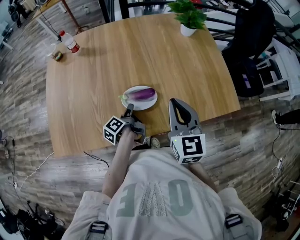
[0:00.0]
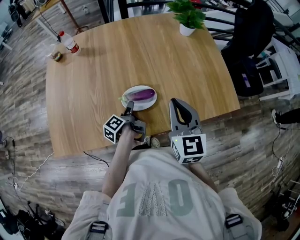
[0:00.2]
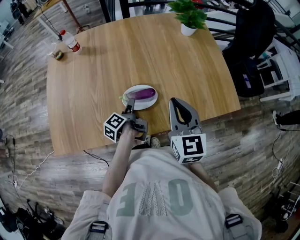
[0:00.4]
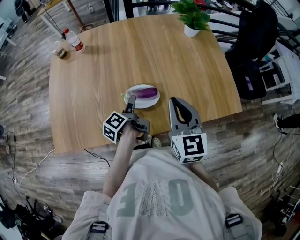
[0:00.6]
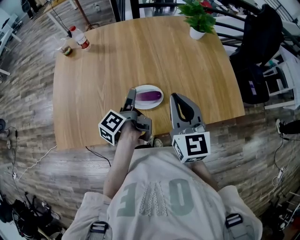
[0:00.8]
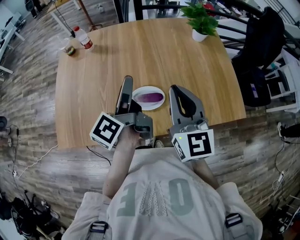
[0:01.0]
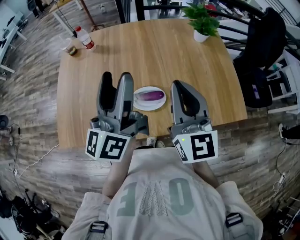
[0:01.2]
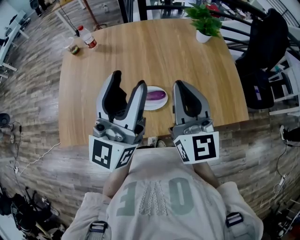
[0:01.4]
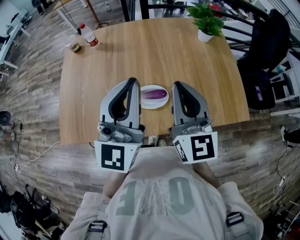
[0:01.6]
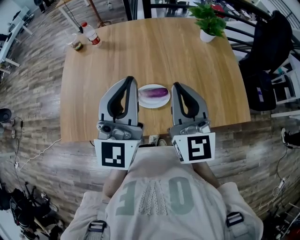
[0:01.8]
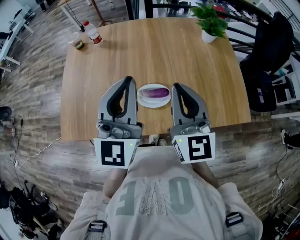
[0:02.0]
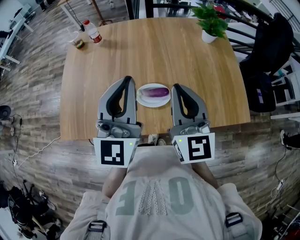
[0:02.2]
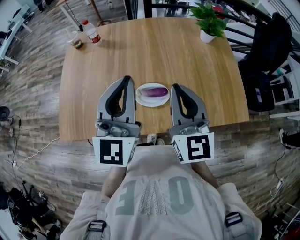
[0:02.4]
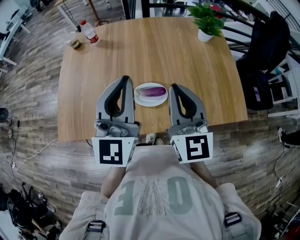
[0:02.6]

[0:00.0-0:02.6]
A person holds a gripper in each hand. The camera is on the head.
0:00.0 to 0:01.2: The right gripper is displaced upward by some 10 cm, and rotates roughly 20 degrees.

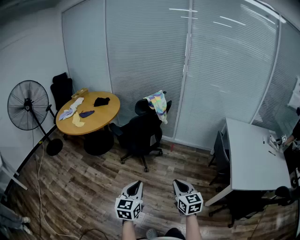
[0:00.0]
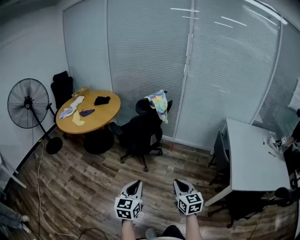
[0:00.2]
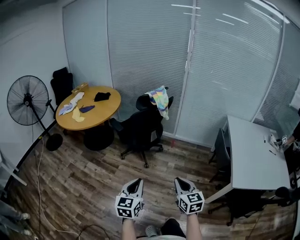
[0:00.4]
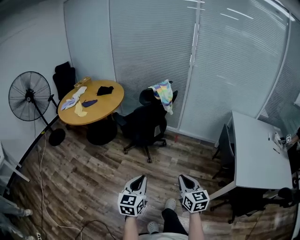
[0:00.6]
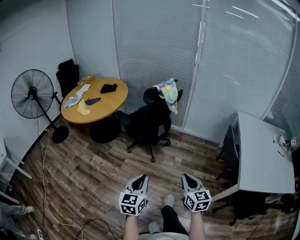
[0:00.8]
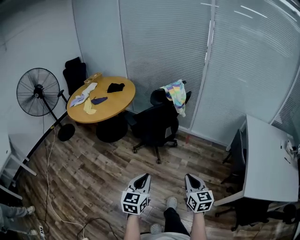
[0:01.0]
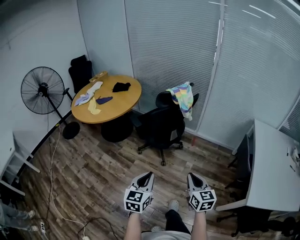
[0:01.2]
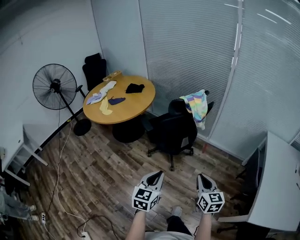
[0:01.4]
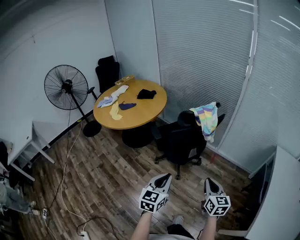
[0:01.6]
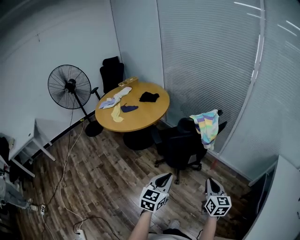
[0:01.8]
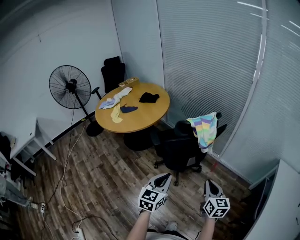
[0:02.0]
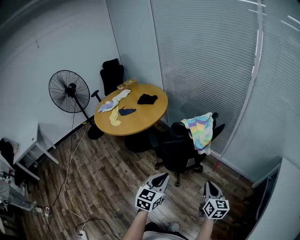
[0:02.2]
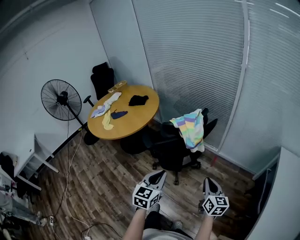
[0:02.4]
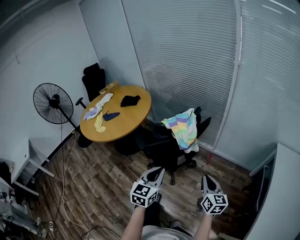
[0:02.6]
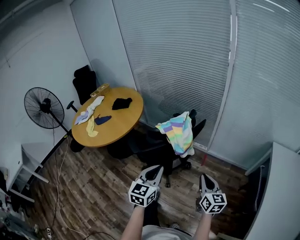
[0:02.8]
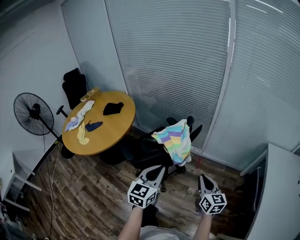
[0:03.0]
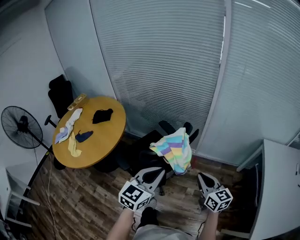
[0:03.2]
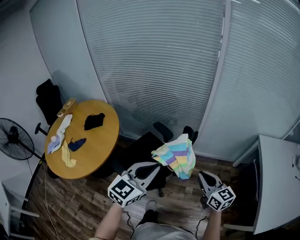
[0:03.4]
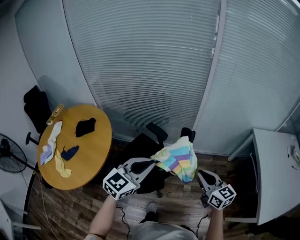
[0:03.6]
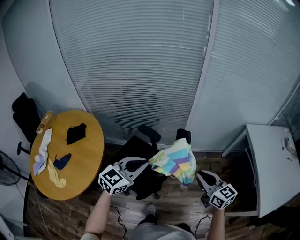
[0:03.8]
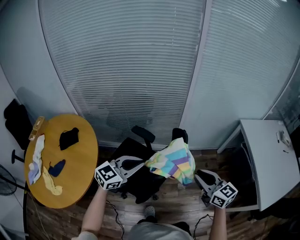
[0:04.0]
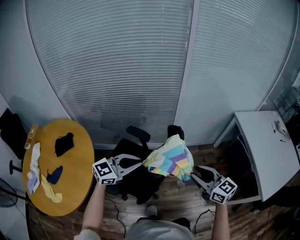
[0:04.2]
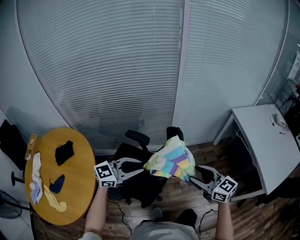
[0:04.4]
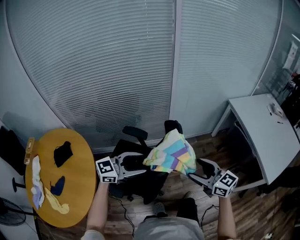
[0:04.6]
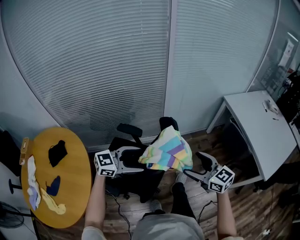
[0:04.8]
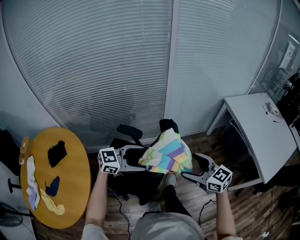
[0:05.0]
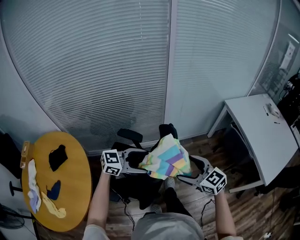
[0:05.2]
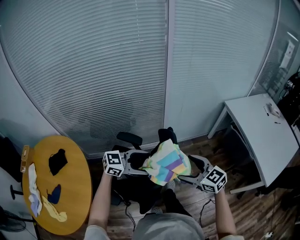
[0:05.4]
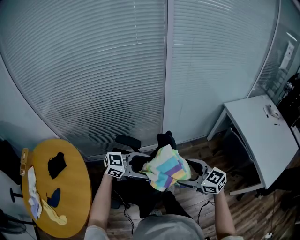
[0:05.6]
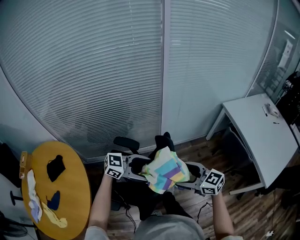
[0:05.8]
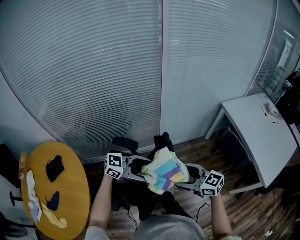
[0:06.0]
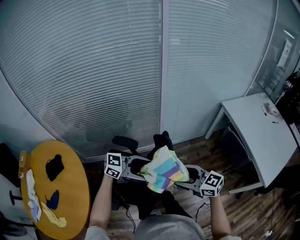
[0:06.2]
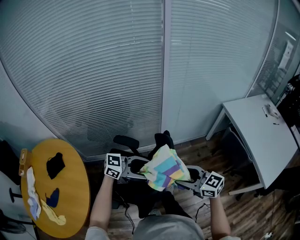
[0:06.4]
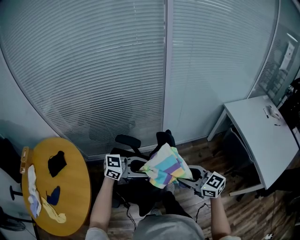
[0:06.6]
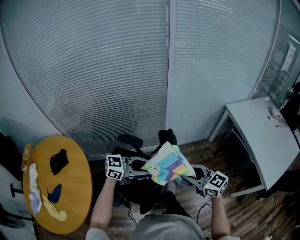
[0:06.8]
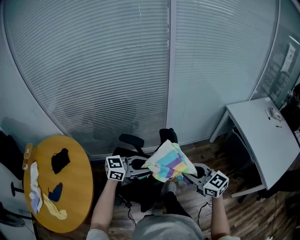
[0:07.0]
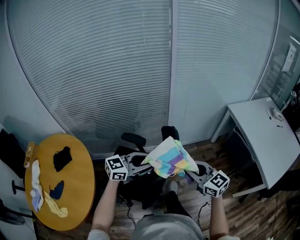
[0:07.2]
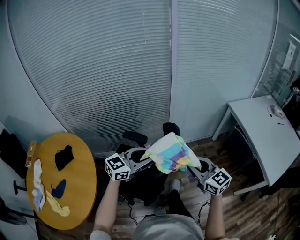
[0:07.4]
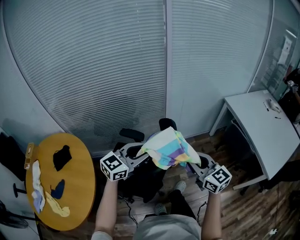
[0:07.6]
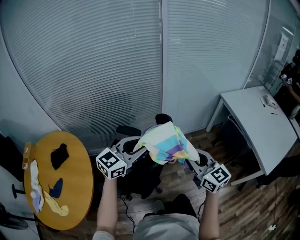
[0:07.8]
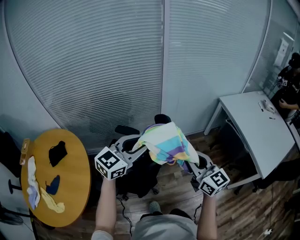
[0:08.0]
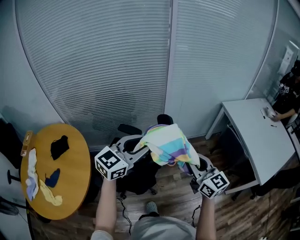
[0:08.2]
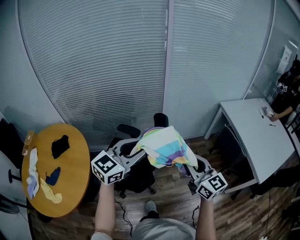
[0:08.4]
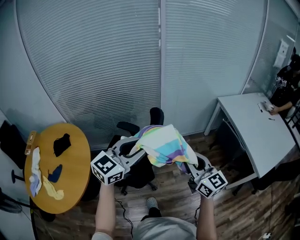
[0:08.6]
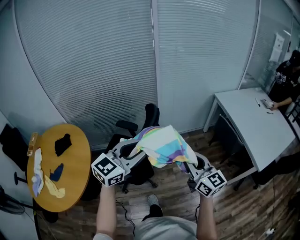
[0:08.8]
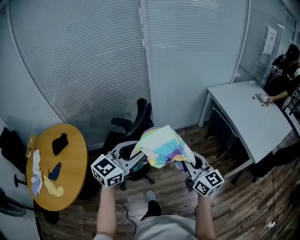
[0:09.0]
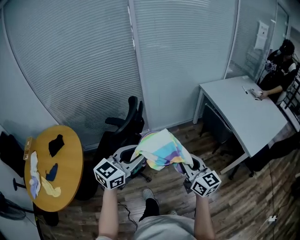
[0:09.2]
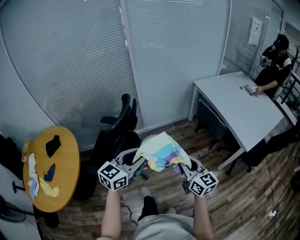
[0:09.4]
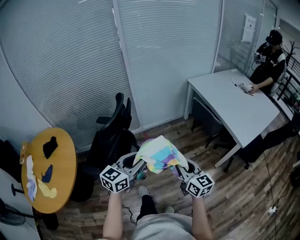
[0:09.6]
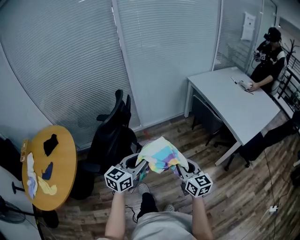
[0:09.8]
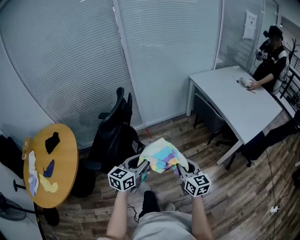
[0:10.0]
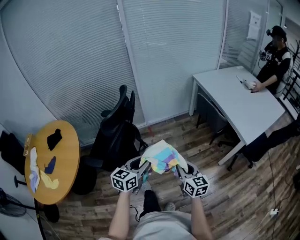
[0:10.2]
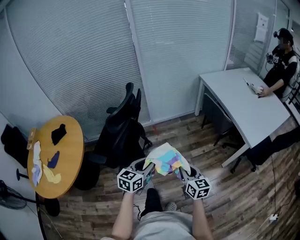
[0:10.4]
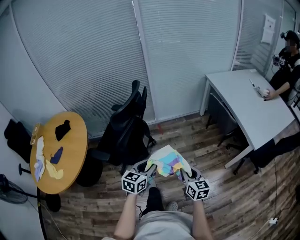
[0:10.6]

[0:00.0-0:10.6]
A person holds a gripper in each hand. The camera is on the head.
0:00.0 to 0:01.6: Both grippers move forward, some 25 cm.
0:01.6 to 0:03.0: The right gripper shifts about 25 cm forward and to the right; the left gripper travels forward by some 25 cm.
0:03.0 to 0:04.6: The right gripper moves roughly 15 cm, and opens; the left gripper moves roughly 5 cm upward and comes back, turns by some 80 degrees, and opens.
0:04.6 to 0:06.0: The right gripper ends up about 5 cm from where it was; the left gripper shifts by roughly 10 cm, turns by about 30 degrees, and opens.
0:06.0 to 0:07.6: The two grippers go approximately 5 cm upward. The right gripper turns by approximately 20 degrees, and closes up. The left gripper rotates roughly 40 degrees, and closes.
0:07.6 to 0:09.0: The right gripper moves backward and to the right, roughly 20 cm. Meanwhile the left gripper is displaced backward, to the right and upward by some 20 cm.
0:09.0 to 0:10.6: The left gripper shifts approximately 25 cm downward and backward, and changes its angle by some 30 degrees, while the right gripper heads downward, backward and to the right, covering approximately 25 cm, and swivels roughly 20 degrees.

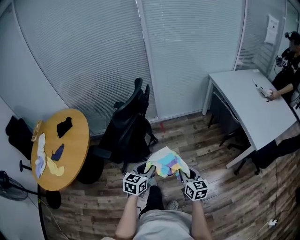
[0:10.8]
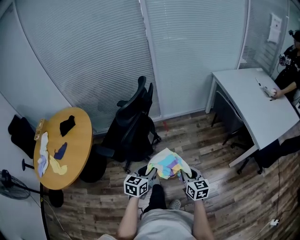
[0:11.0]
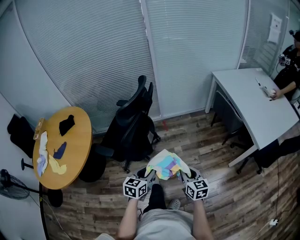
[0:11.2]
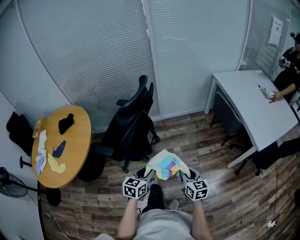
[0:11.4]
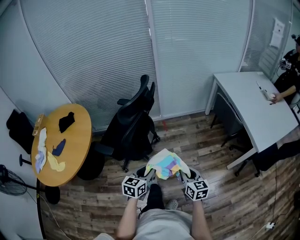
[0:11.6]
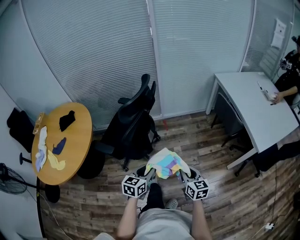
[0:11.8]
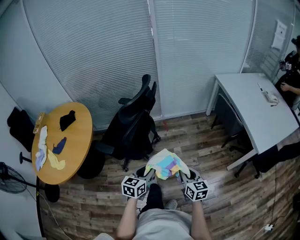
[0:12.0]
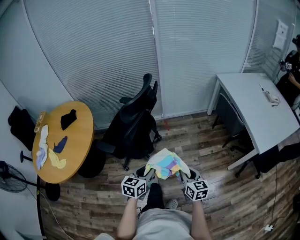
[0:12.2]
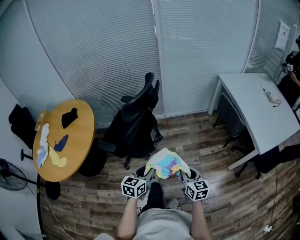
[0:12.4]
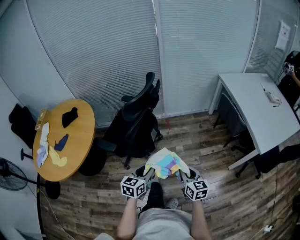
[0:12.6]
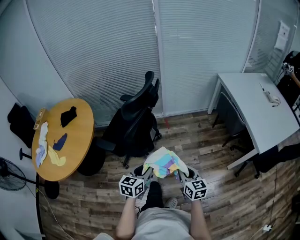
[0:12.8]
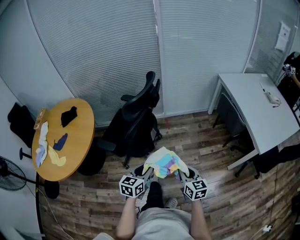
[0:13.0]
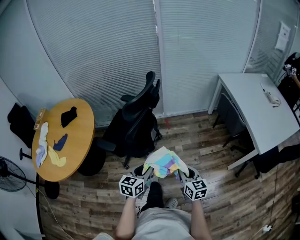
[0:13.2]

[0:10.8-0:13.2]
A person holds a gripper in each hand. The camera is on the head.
0:10.8 to 0:13.2: The grippers move only a little.

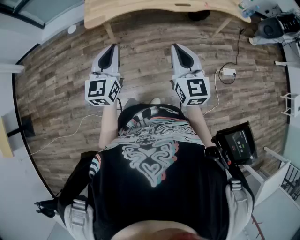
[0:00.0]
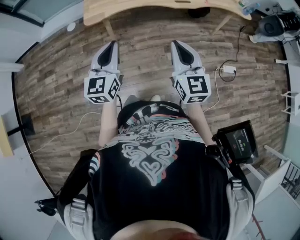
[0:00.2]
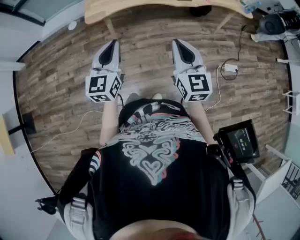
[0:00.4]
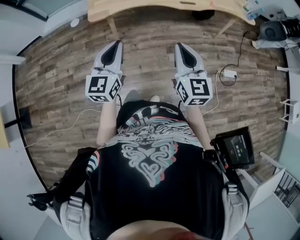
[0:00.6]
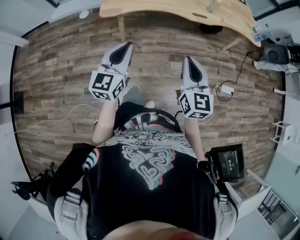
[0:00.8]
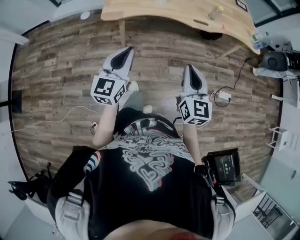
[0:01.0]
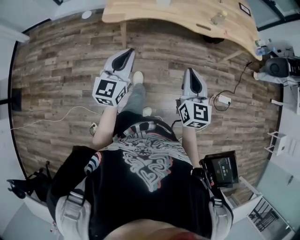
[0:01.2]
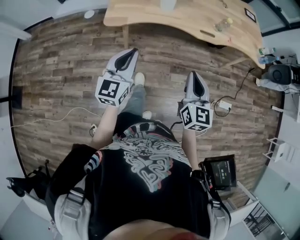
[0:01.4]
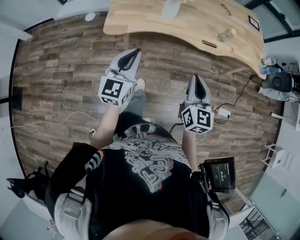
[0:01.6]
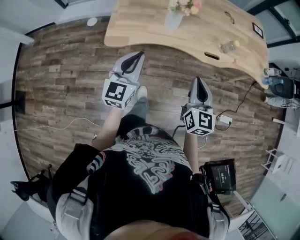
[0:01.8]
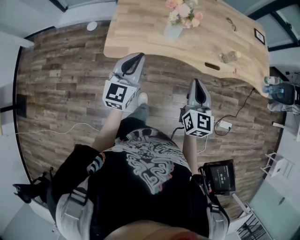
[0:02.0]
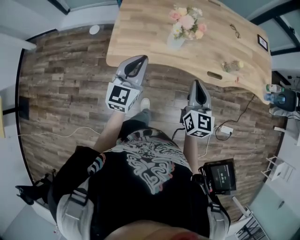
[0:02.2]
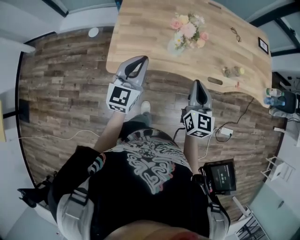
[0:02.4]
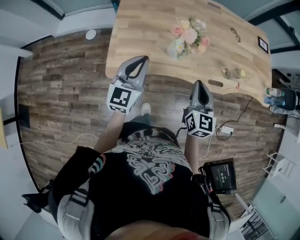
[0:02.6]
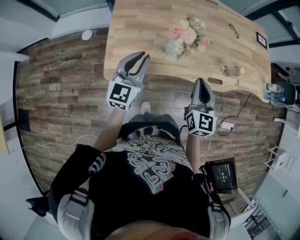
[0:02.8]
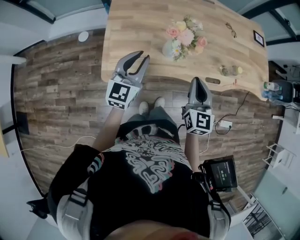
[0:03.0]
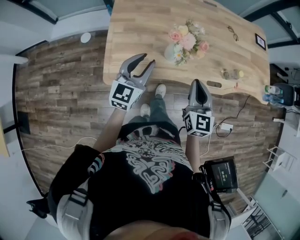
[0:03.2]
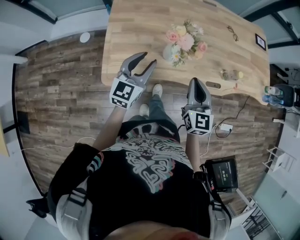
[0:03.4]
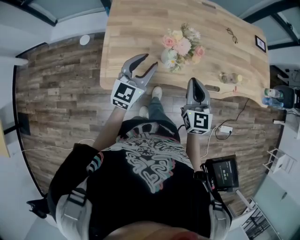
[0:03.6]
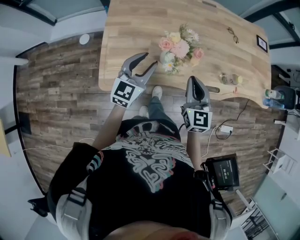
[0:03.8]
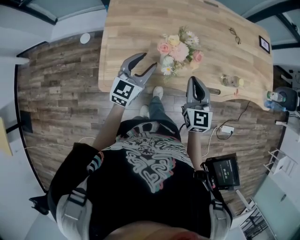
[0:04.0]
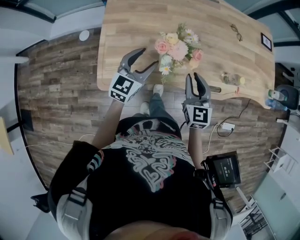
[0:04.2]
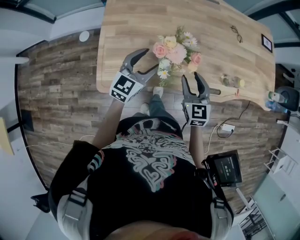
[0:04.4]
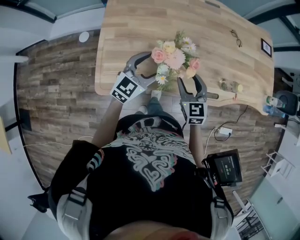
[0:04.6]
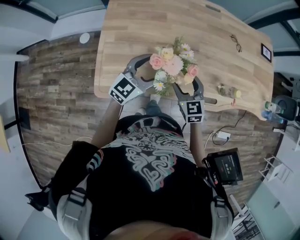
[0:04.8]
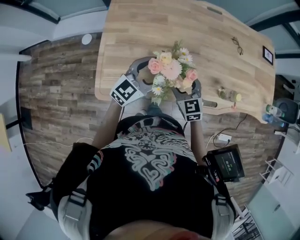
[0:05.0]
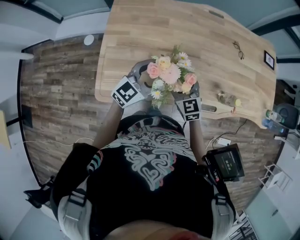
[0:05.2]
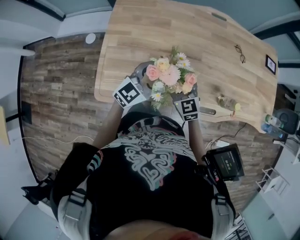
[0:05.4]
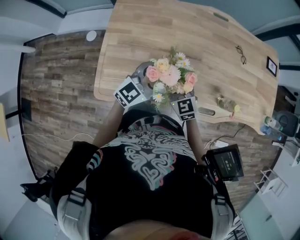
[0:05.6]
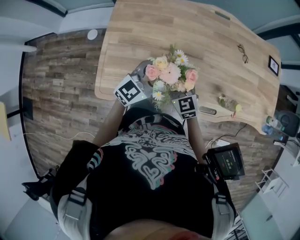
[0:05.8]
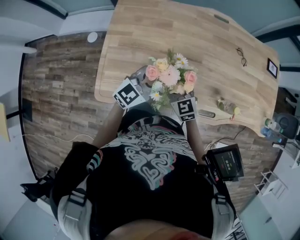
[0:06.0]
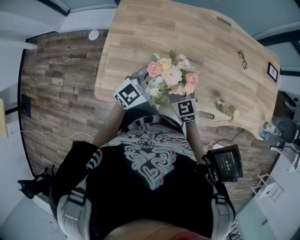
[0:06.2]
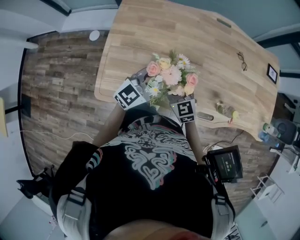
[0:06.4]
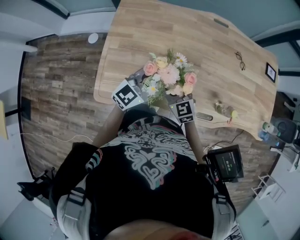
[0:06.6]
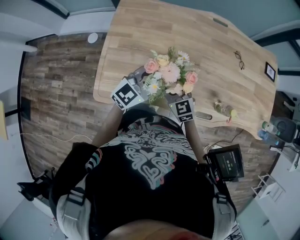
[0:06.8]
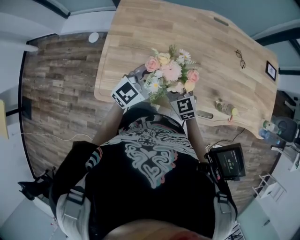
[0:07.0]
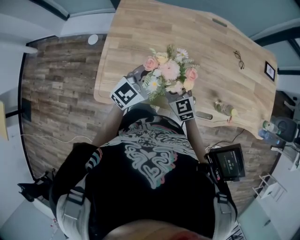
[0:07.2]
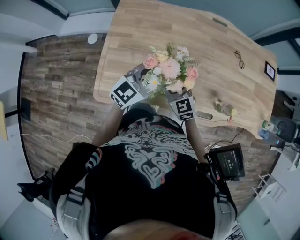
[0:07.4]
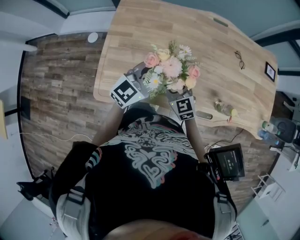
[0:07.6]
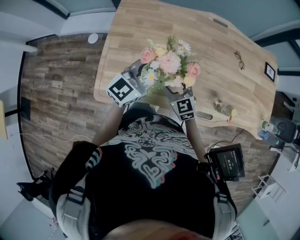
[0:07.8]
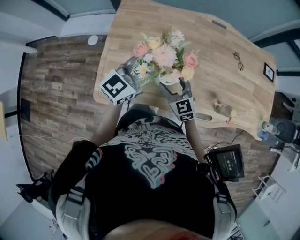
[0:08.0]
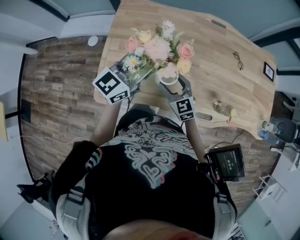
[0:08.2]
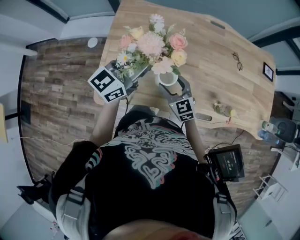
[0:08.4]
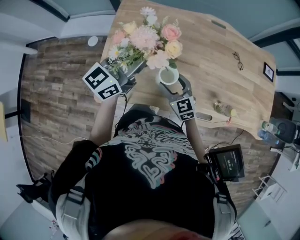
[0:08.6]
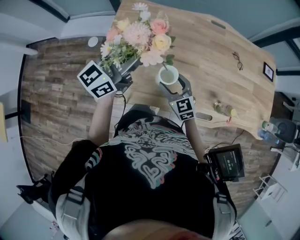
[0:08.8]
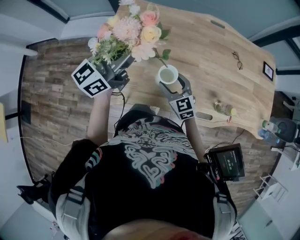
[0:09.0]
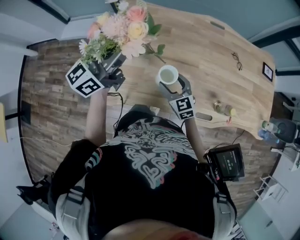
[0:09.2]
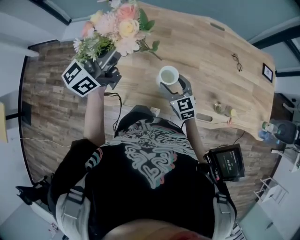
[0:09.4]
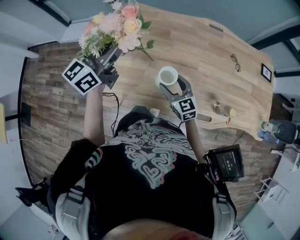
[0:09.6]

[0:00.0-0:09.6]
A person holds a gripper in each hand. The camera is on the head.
0:00.0 to 0:01.6: The grippers both shift forward by approximately 20 cm.
0:01.6 to 0:03.2: The grippers both shift forward by about 30 cm.
0:03.2 to 0:04.8: The left gripper travels forward, to the right and downward by about 15 cm, and opens its fingers; the right gripper shifts about 15 cm forward and downward, turns by about 30 degrees, and opens.
0:04.8 to 0:06.4: The right gripper moves to the left, some 5 cm. Meanwhile the left gripper closes its fingers.
0:06.4 to 0:08.0: The left gripper travels upward by some 10 cm.
0:08.0 to 0:09.6: The left gripper is displaced to the left and upward by some 15 cm, and turns by about 20 degrees.
